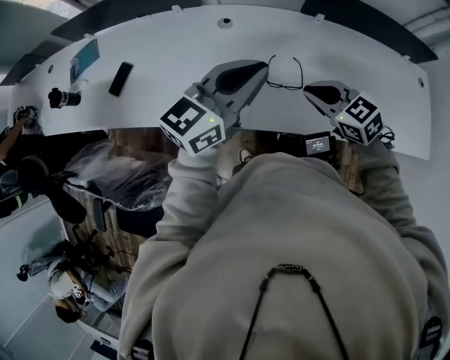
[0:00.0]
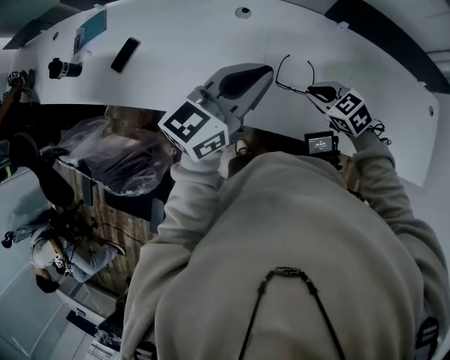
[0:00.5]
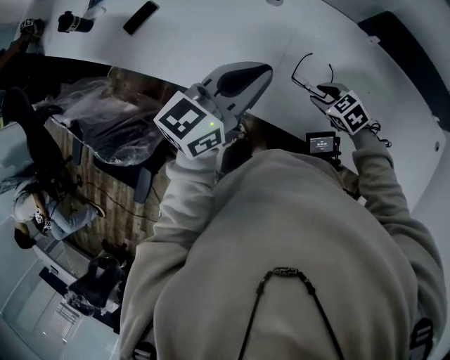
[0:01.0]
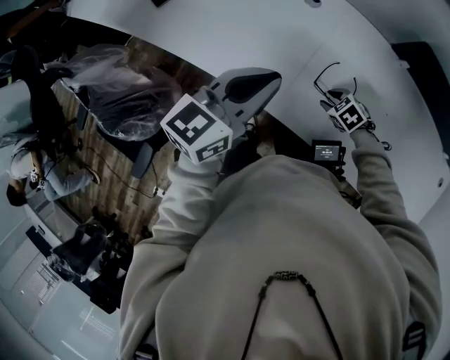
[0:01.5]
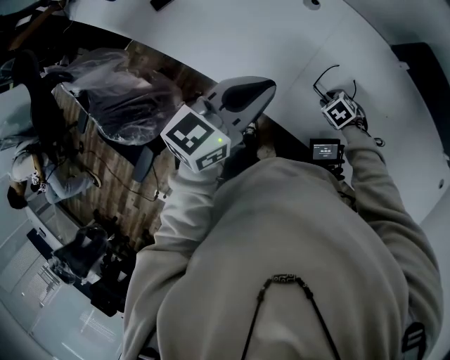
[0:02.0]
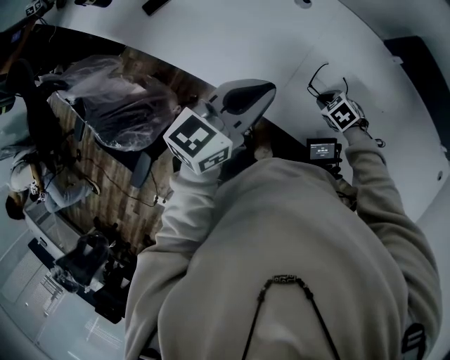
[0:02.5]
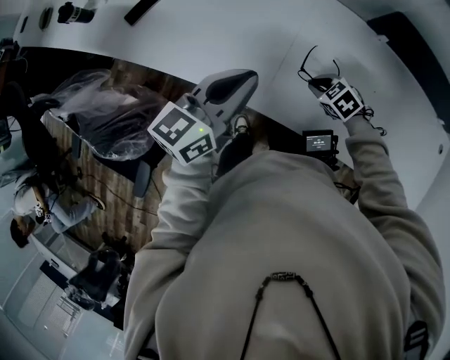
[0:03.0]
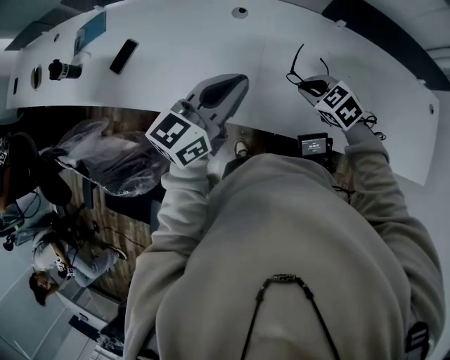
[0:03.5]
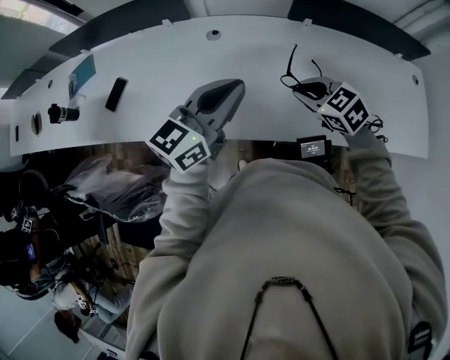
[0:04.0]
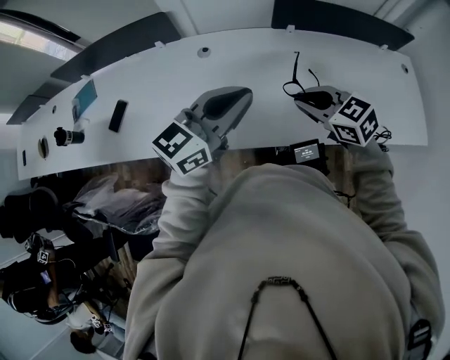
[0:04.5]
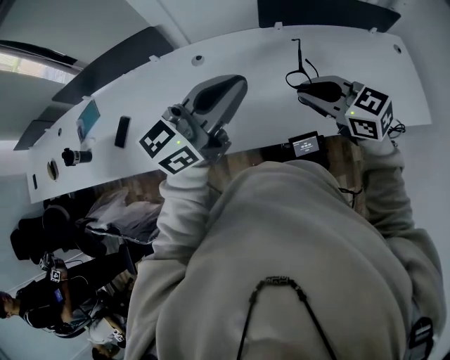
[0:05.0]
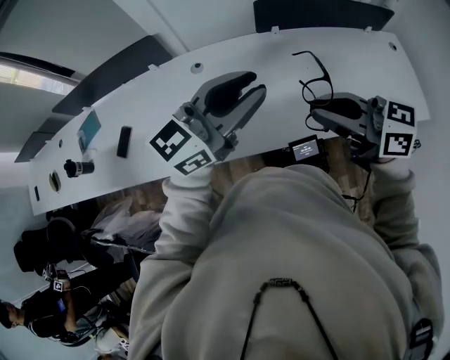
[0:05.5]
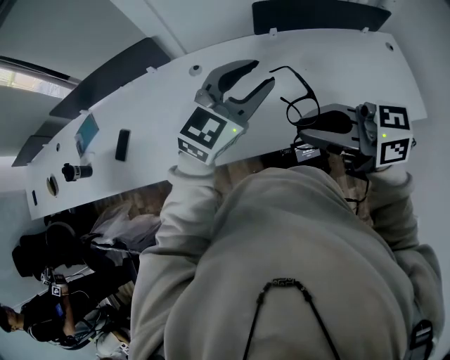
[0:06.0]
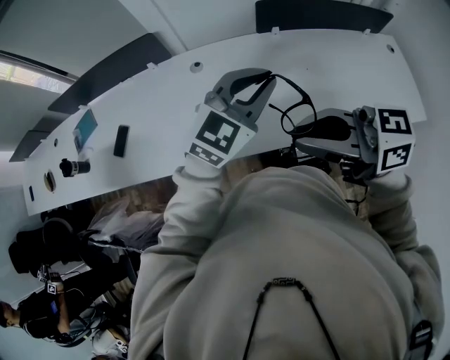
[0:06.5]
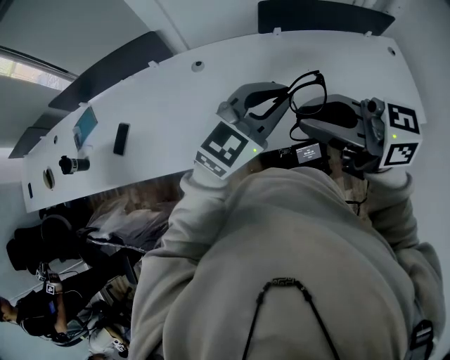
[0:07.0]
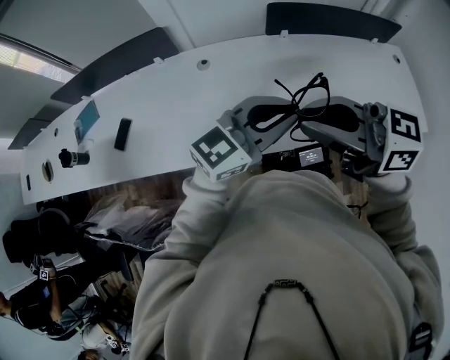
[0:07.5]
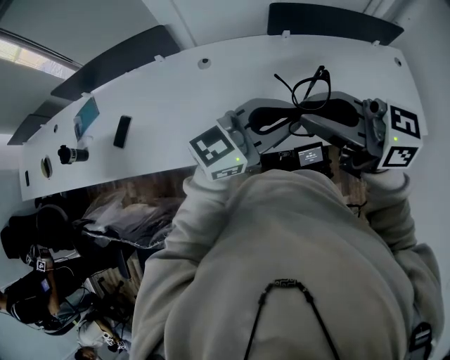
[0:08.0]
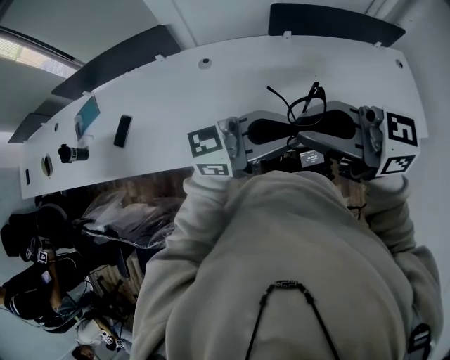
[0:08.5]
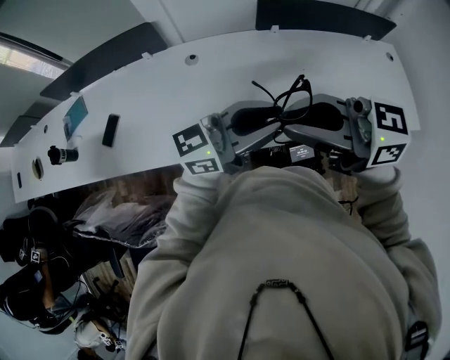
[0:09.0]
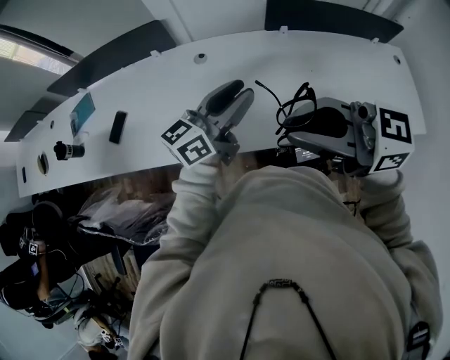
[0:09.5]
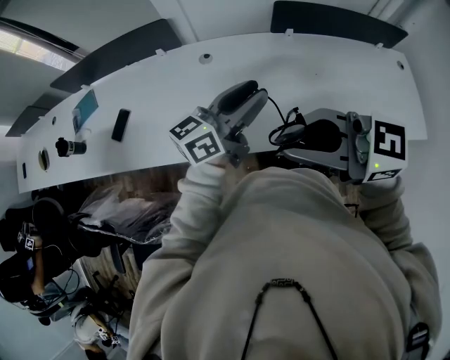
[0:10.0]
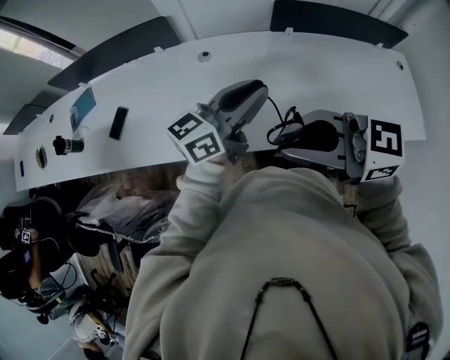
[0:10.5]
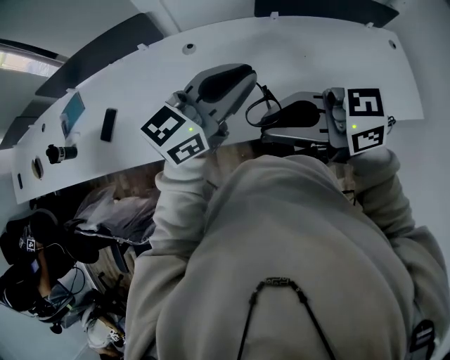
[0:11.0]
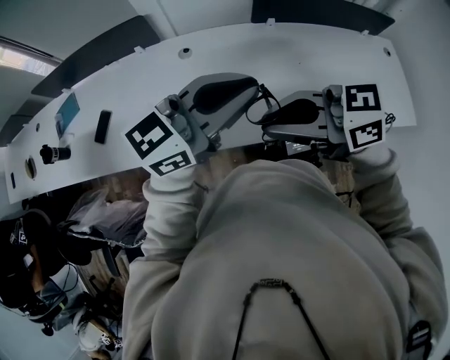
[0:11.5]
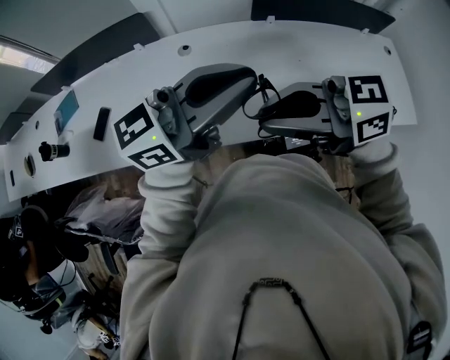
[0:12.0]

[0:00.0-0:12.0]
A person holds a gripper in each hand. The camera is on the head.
0:00.0 to 0:02.0: The right gripper travels downward by approximately 30 cm, angles its fingers downward, by some 40 degrees, and opens up. Meanwhile the left gripper is displaced downward by some 10 cm, and turns by some 30 degrees.
0:02.0 to 0:04.0: The left gripper is displaced upward by some 10 cm, and swivels approximately 30 degrees; the right gripper moves upward, roughly 30 cm, and tips its fingers upward by roughly 30 degrees.
0:04.0 to 0:06.0: The left gripper moves some 10 cm, rotates some 30 degrees, and opens up. The right gripper is displaced upward by roughly 20 cm, and points its fingers roughly 40 degrees further upward.
0:06.0 to 0:08.0: The left gripper shifts by some 10 cm, changes its angle by approximately 30 degrees, and closes up; the right gripper is displaced upward by roughly 5 cm.
0:08.0 to 0:10.0: The right gripper shifts by some 5 cm. The left gripper shifts by roughly 10 cm, swivels approximately 30 degrees, and opens.
0:10.0 to 0:12.0: The left gripper goes about 10 cm upward, changes its angle by approximately 20 degrees, and closes up.

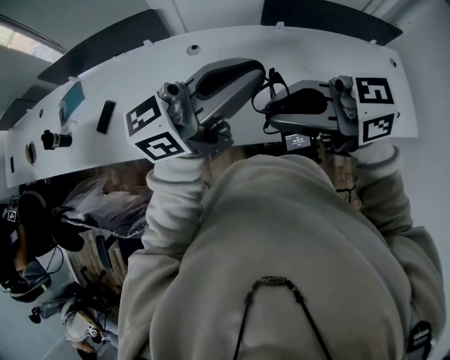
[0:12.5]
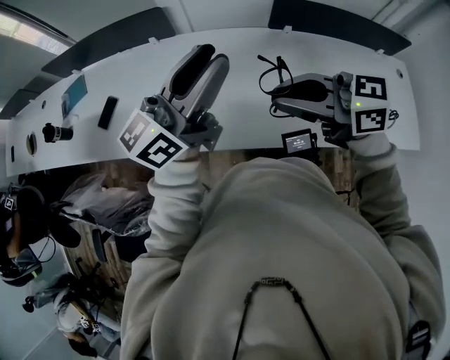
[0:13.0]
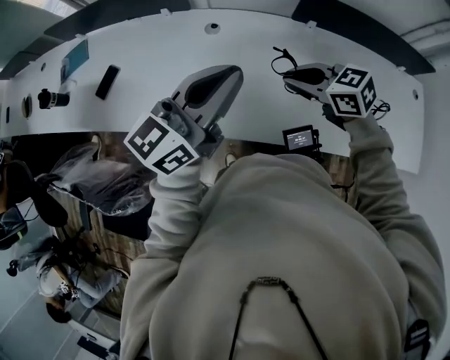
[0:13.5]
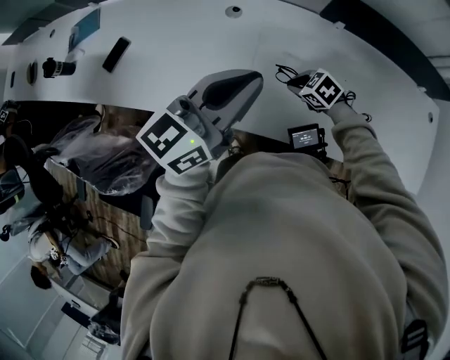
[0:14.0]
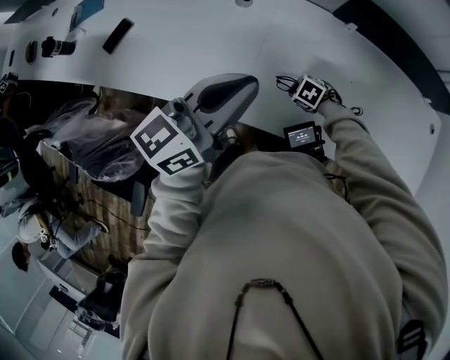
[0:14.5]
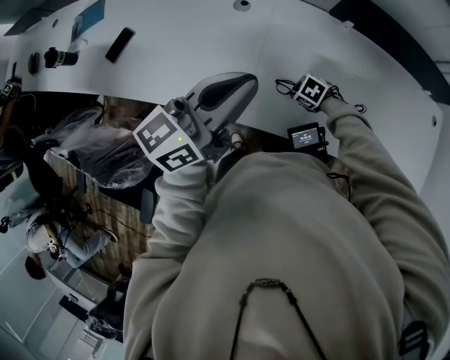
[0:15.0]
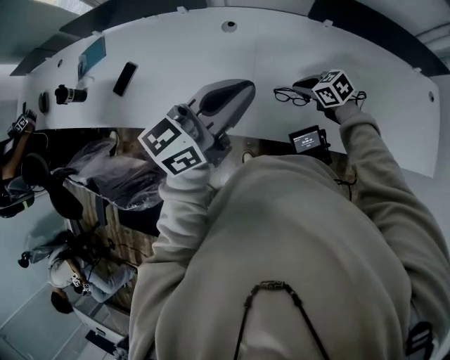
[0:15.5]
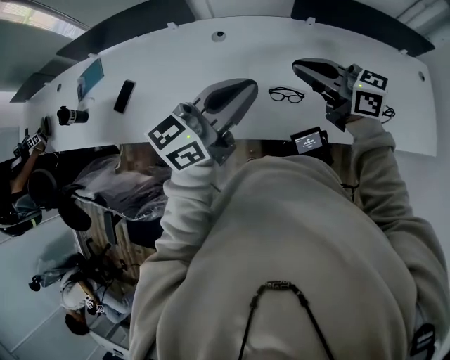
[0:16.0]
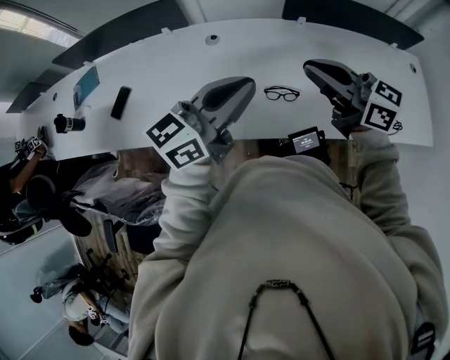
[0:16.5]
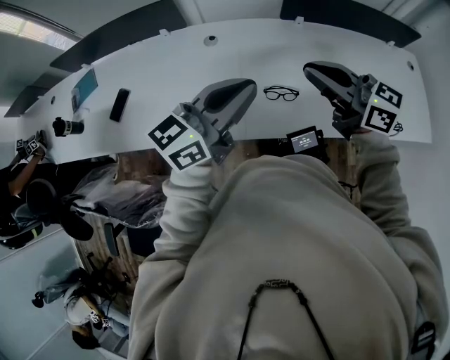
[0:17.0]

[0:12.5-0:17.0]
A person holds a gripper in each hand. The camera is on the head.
0:12.5 to 0:14.5: The right gripper is displaced downward by roughly 50 cm, and tilts its fingers about 70 degrees downward, while the left gripper heads downward, covering approximately 15 cm, swivels roughly 40 degrees, and opens and closes again.
0:14.5 to 0:17.0: The left gripper ends up approximately 5 cm from where it was, and changes its angle by approximately 20 degrees, while the right gripper moves upward, some 40 cm, and tilts its fingers approximately 70 degrees upward.

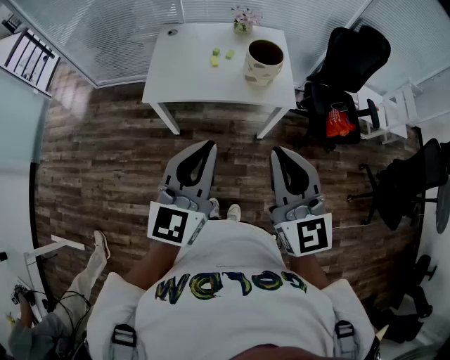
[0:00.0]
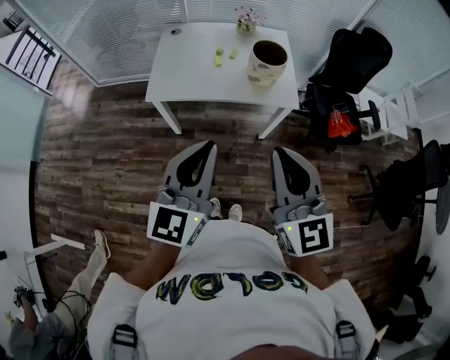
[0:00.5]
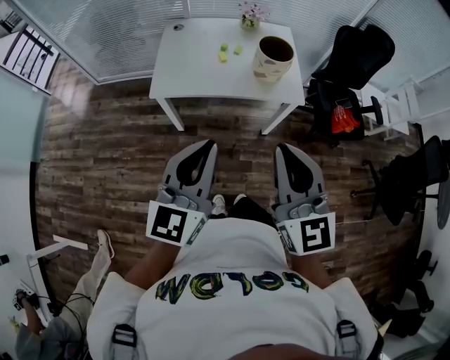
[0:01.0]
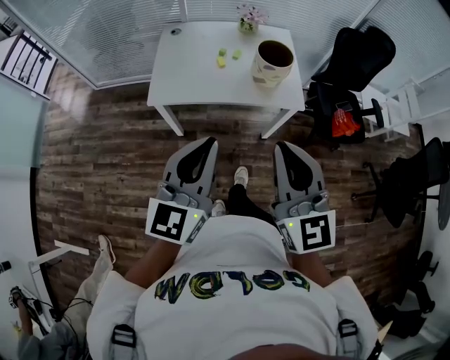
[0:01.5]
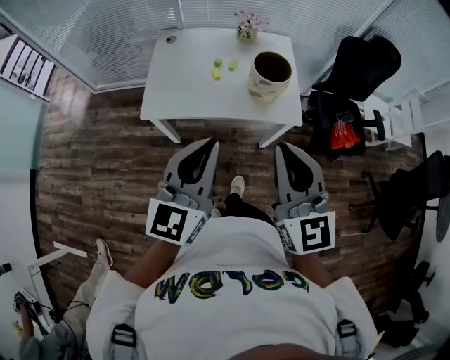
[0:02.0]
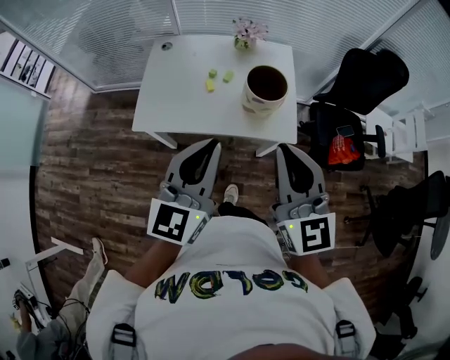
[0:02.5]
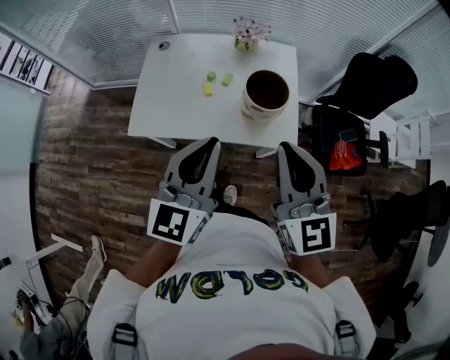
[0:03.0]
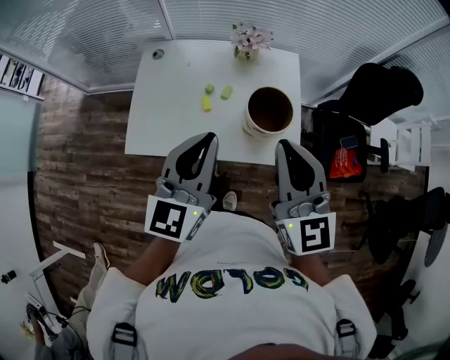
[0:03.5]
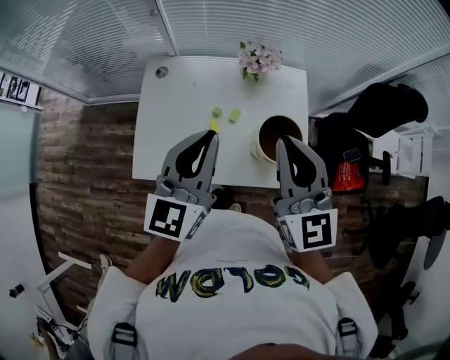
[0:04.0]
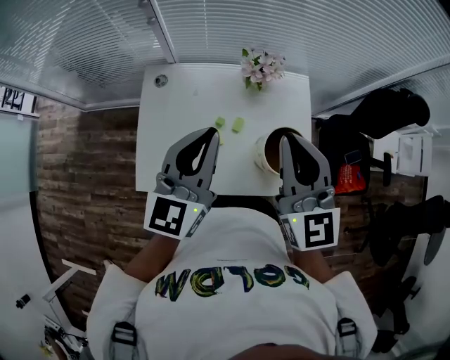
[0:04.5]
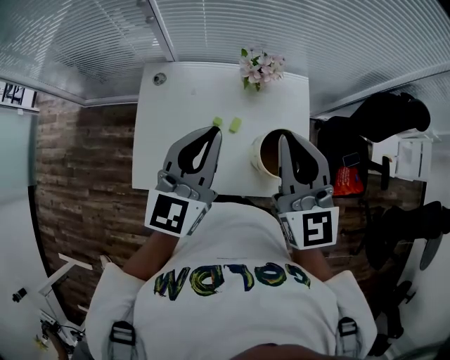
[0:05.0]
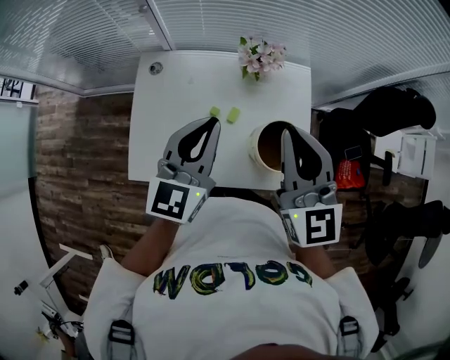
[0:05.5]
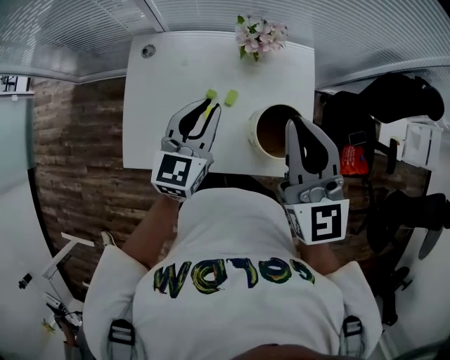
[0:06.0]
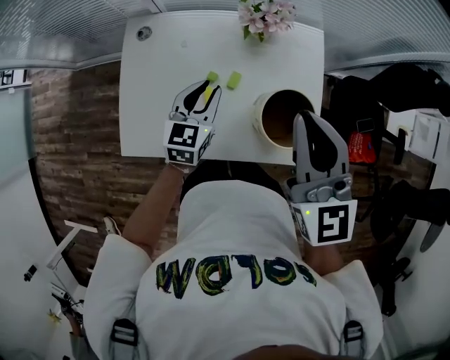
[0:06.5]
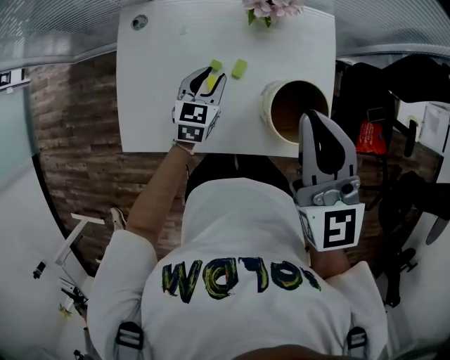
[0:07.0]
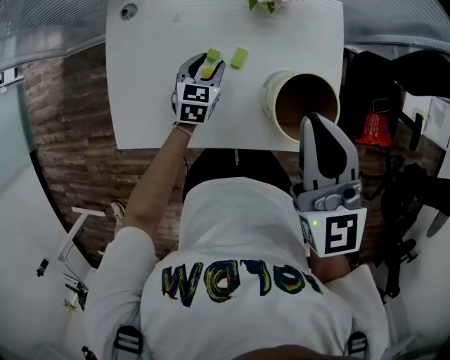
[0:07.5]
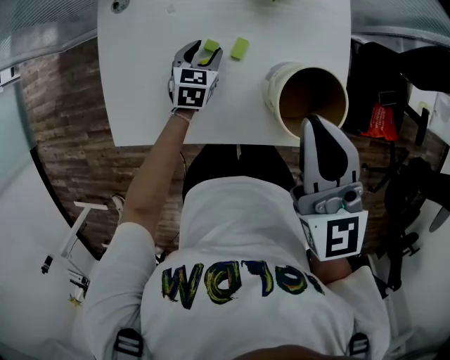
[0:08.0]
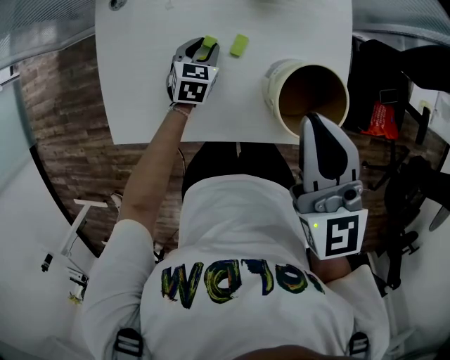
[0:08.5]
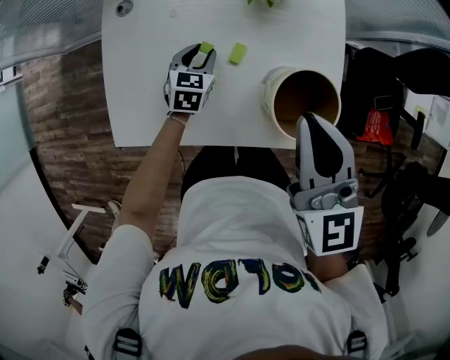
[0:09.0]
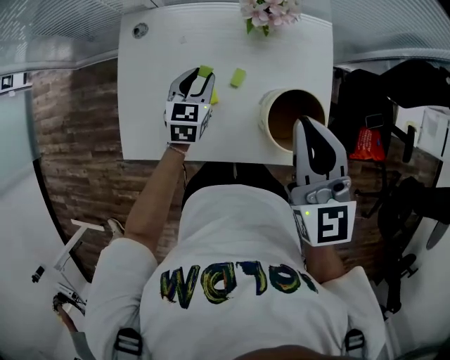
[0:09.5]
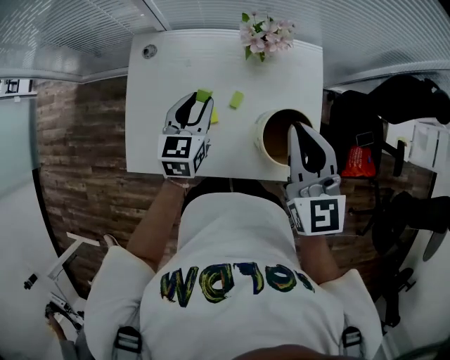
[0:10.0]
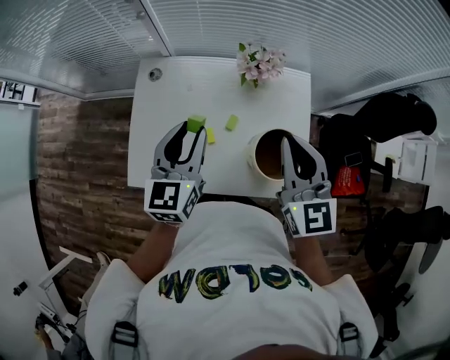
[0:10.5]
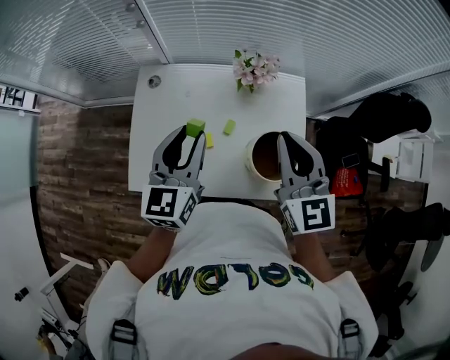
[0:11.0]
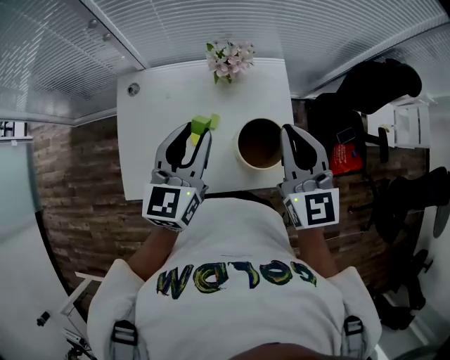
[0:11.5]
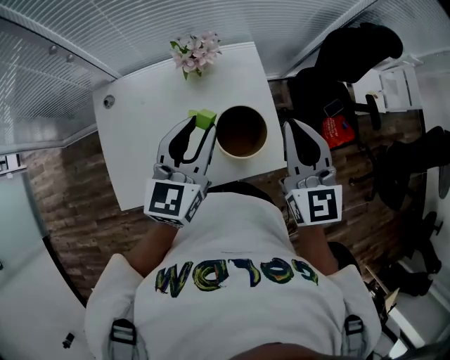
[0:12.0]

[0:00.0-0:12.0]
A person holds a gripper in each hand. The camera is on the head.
0:00.0 to 0:02.0: The grippers both shift forward by approximately 15 cm.
0:02.0 to 0:04.0: The two grippers go about 40 cm forward.
0:04.0 to 0:06.0: The left gripper goes roughly 15 cm downward and forward, while the right gripper is displaced forward by about 10 cm.
0:06.0 to 0:08.0: The right gripper travels downward by roughly 15 cm, while the left gripper moves downward, some 35 cm, changes its angle by roughly 30 degrees, and opens up.
0:08.0 to 0:10.0: The right gripper moves upward, approximately 5 cm; the left gripper heads upward, covering about 25 cm, and turns by about 20 degrees.
0:10.0 to 0:12.0: The left gripper shifts about 20 cm upward and to the right, and rotates roughly 30 degrees, while the right gripper goes approximately 15 cm to the right and upward.
